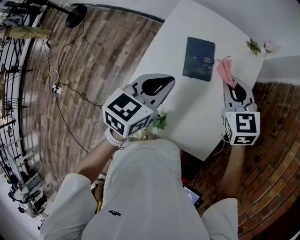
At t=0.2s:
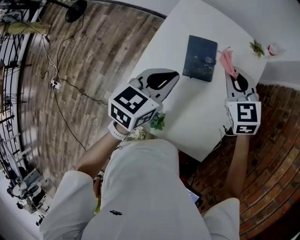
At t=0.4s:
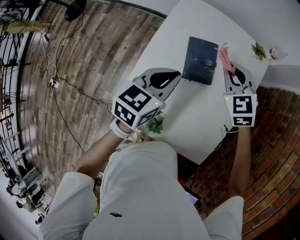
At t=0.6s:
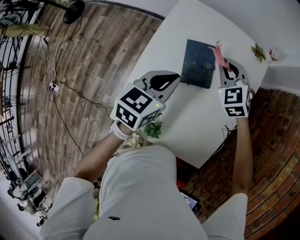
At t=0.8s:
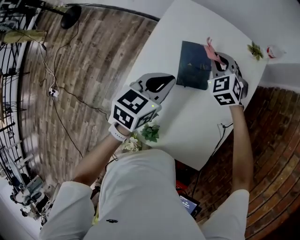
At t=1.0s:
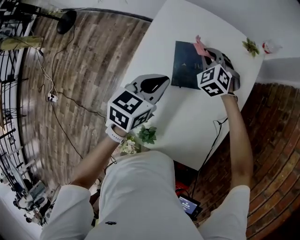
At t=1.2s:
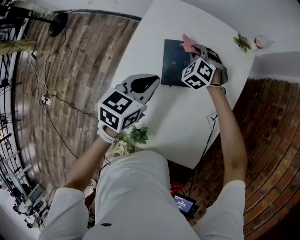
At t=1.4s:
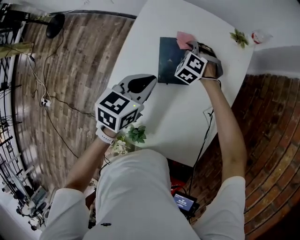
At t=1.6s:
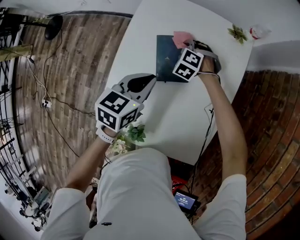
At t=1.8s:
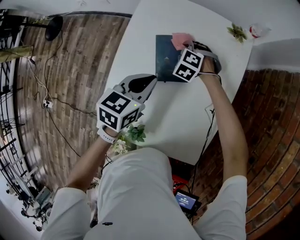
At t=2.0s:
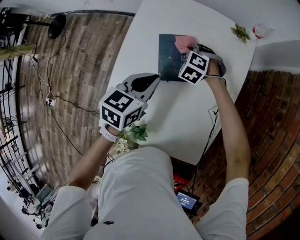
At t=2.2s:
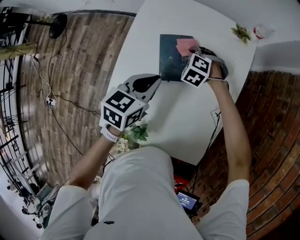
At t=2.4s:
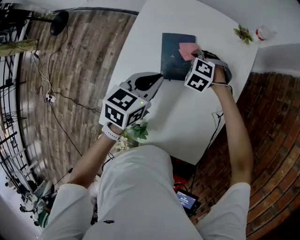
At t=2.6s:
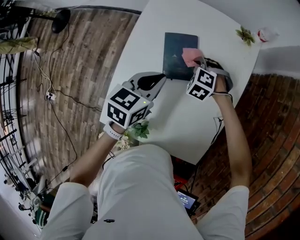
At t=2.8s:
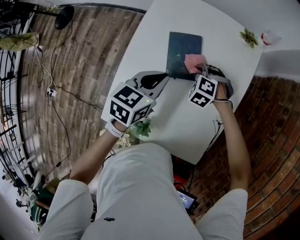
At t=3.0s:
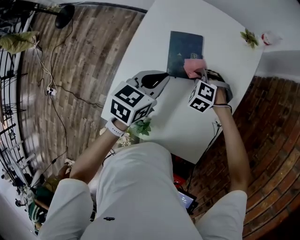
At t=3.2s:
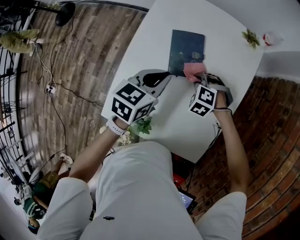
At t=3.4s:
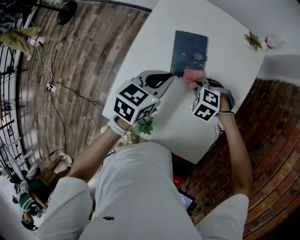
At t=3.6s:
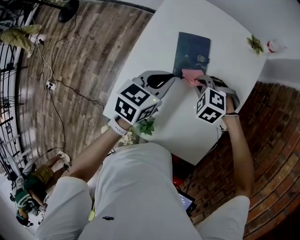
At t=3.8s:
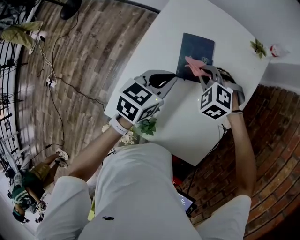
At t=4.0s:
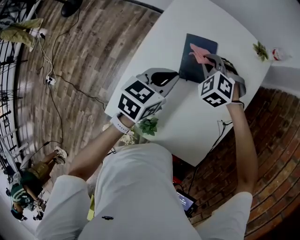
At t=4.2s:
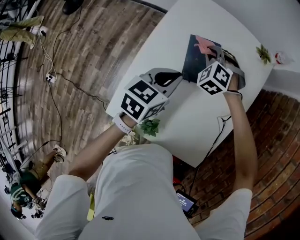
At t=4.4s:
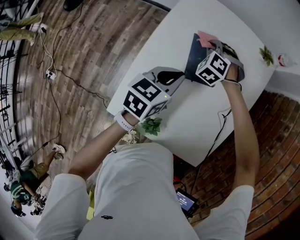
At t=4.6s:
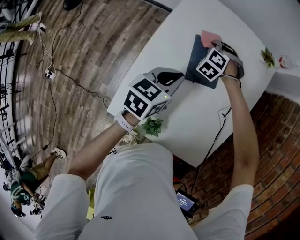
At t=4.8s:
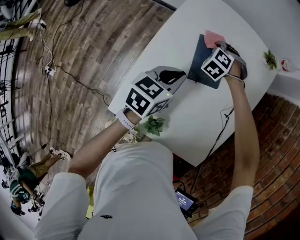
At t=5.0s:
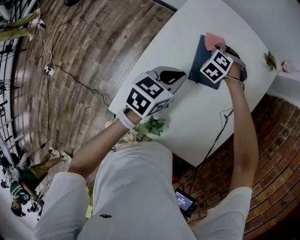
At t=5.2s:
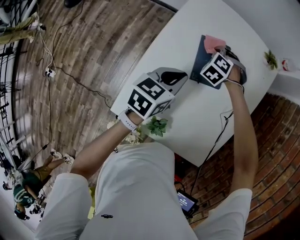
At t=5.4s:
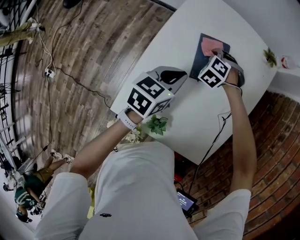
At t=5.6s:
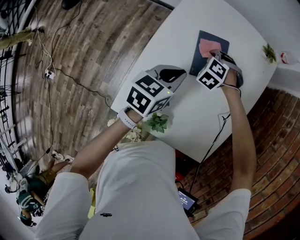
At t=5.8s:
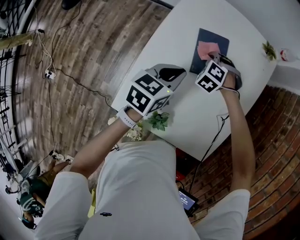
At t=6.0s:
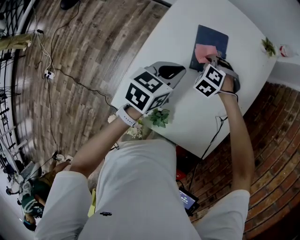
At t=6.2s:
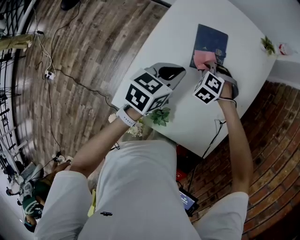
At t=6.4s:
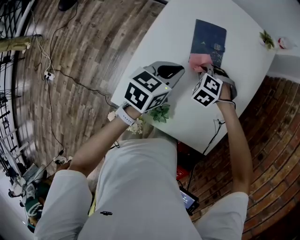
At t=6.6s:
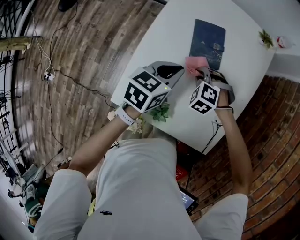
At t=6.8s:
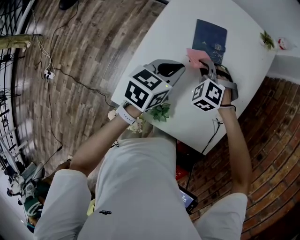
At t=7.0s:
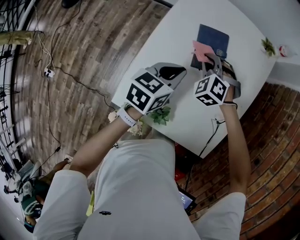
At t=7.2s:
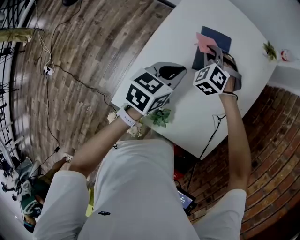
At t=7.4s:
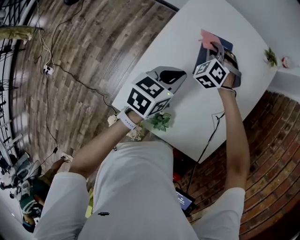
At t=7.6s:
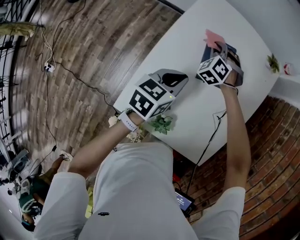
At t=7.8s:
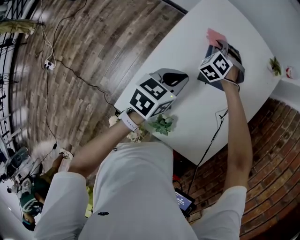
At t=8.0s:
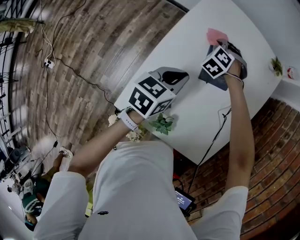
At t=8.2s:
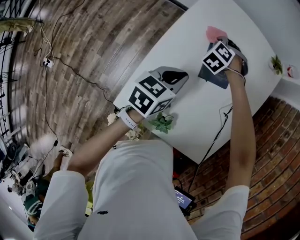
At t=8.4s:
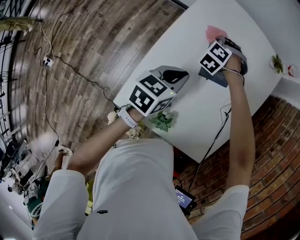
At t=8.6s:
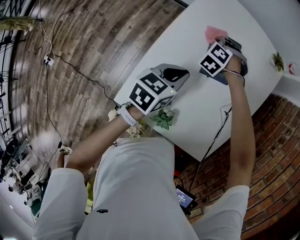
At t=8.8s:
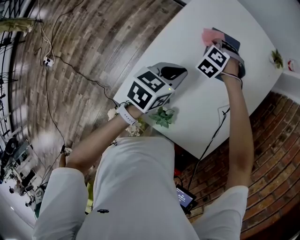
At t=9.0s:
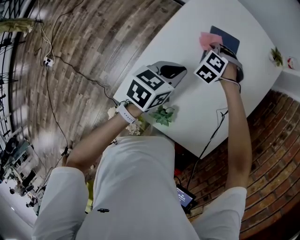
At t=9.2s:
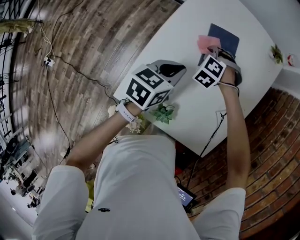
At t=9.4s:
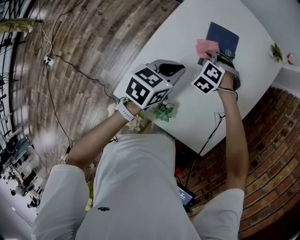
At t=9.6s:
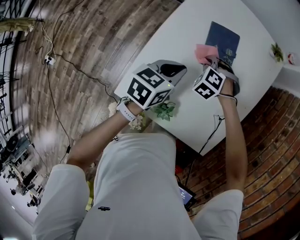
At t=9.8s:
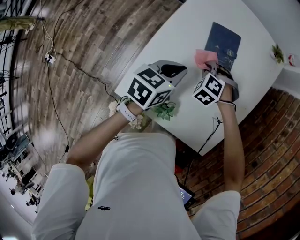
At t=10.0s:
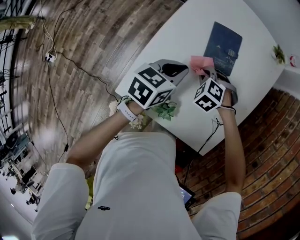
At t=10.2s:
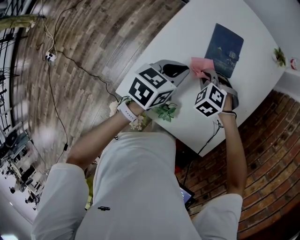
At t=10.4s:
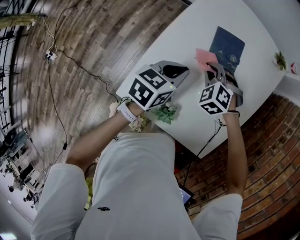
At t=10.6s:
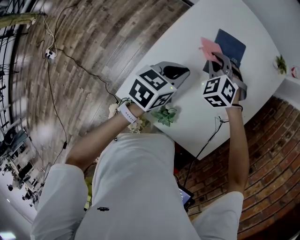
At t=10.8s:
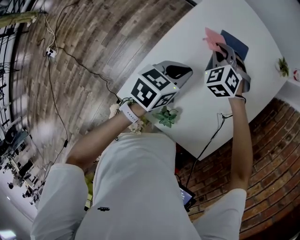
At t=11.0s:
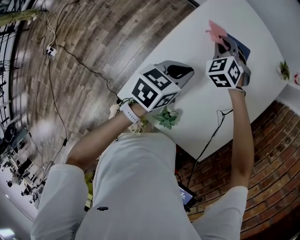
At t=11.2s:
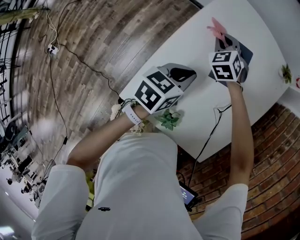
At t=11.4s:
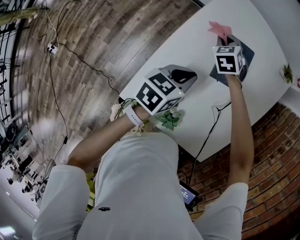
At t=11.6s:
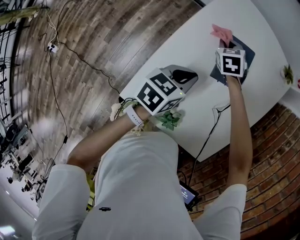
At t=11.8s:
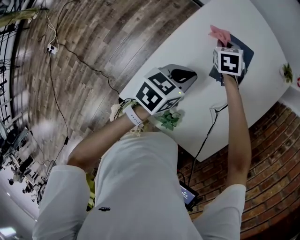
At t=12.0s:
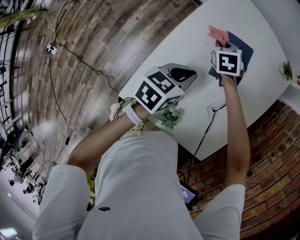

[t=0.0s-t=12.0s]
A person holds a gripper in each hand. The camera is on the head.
t=0.0s to t=1.6s: The right gripper heads downward and forward, covering some 30 cm, and changes its angle by some 50 degrees; the left gripper heads downward and forward, covering approximately 15 cm.
t=1.6s to t=3.0s: The right gripper goes approximately 15 cm backward.
t=3.0s to t=4.4s: The right gripper changes place by some 15 cm.
t=4.4s to t=6.0s: The right gripper travels backward by about 10 cm.
t=6.0s to t=7.6s: The right gripper shifts about 10 cm forward and to the left.
t=7.6s to t=9.0s: The right gripper is displaced backward by about 5 cm.
t=9.0s to t=10.4s: The right gripper heads backward, covering roughly 10 cm.
t=10.4s to t=12.0s: The right gripper travels forward by about 15 cm, and twists approximately 40 degrees clockwise, seen from behind.

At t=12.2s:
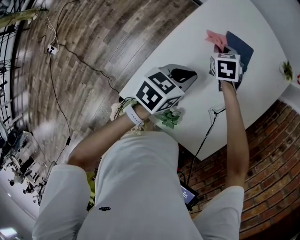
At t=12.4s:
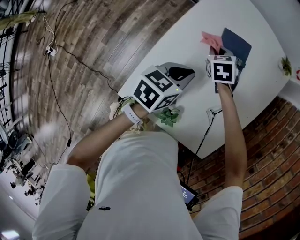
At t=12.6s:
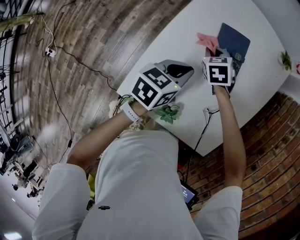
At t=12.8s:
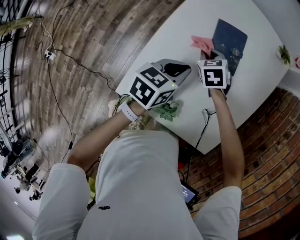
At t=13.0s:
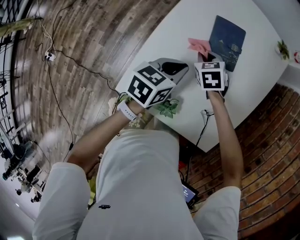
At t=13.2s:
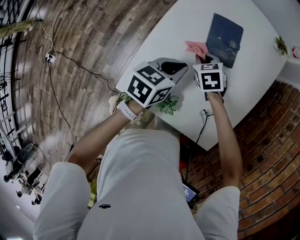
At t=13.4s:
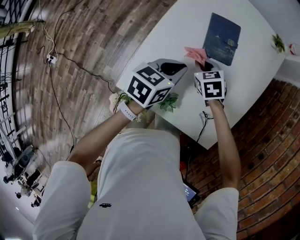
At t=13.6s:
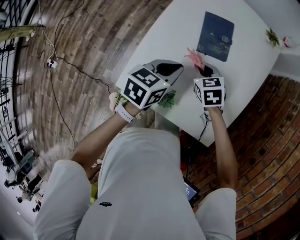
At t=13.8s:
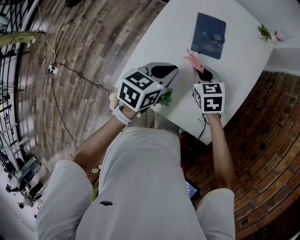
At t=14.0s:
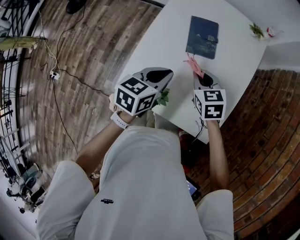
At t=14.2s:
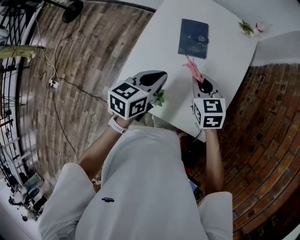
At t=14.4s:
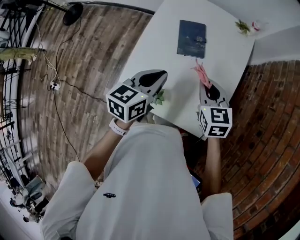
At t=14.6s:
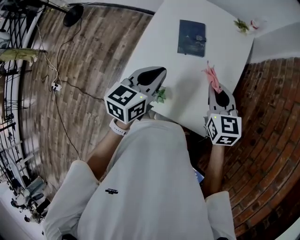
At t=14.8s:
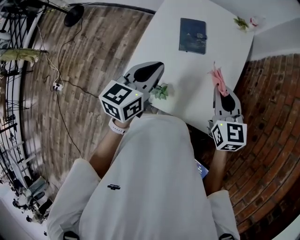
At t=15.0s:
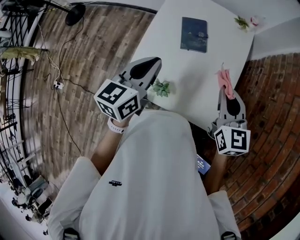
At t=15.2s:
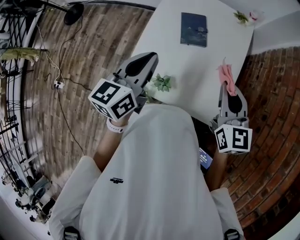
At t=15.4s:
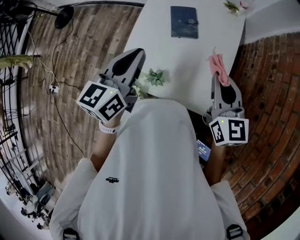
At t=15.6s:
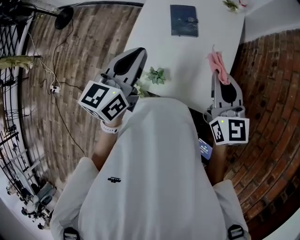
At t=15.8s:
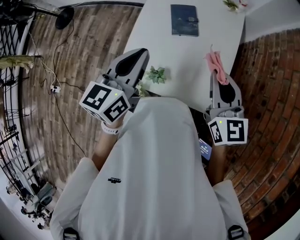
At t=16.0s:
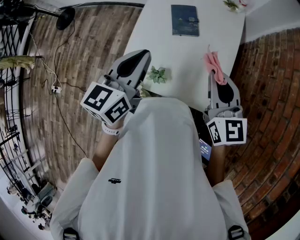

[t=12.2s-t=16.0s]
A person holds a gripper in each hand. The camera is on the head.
t=12.2s to t=13.4s: The right gripper travels backward by about 15 cm, while the left gripper changes place by roughly 5 cm.
t=13.4s to t=14.8s: The left gripper travels upward by roughly 20 cm, and turns by approximately 20 degrees. Meanwhile the right gripper travels upward, to the right and backward by about 35 cm, and points its fingers roughly 30 degrees further upward.
t=14.8s to t=16.0s: The left gripper moves upward and backward, roughly 10 cm, while the right gripper heads backward and upward, covering roughly 10 cm.

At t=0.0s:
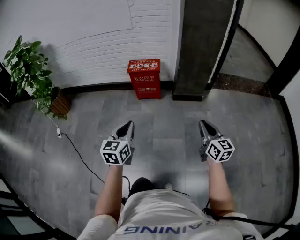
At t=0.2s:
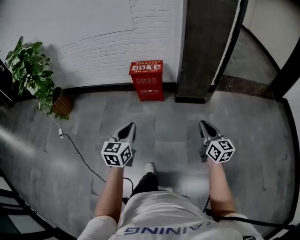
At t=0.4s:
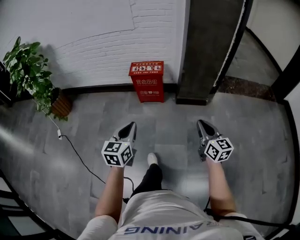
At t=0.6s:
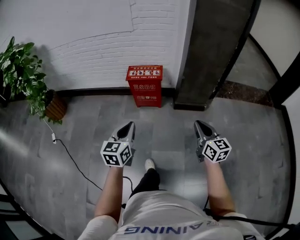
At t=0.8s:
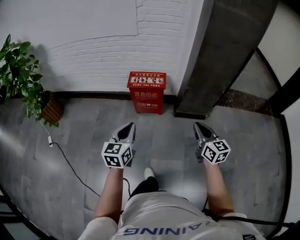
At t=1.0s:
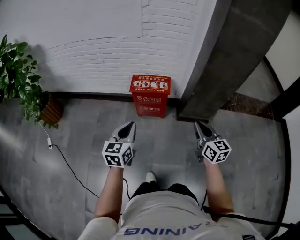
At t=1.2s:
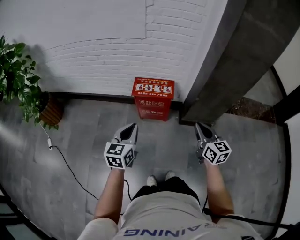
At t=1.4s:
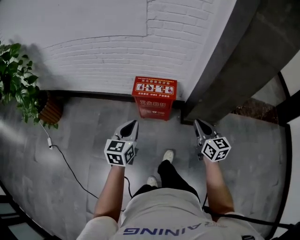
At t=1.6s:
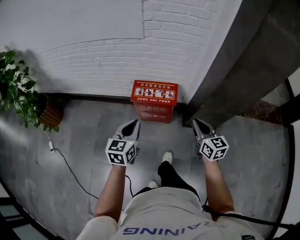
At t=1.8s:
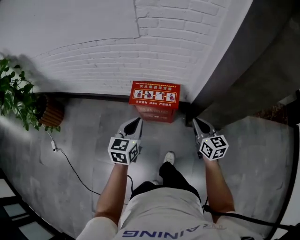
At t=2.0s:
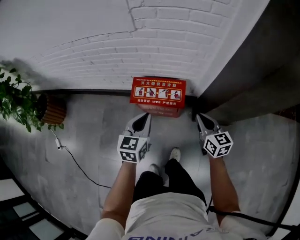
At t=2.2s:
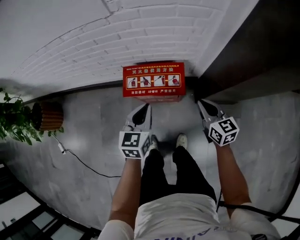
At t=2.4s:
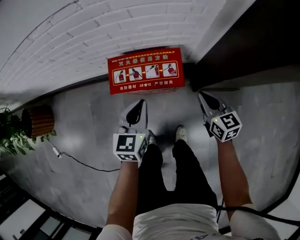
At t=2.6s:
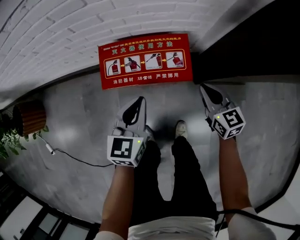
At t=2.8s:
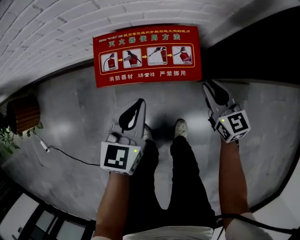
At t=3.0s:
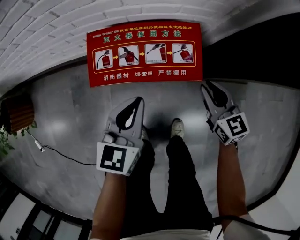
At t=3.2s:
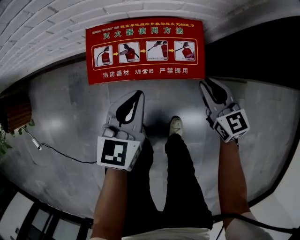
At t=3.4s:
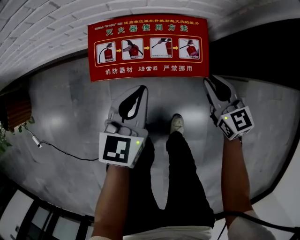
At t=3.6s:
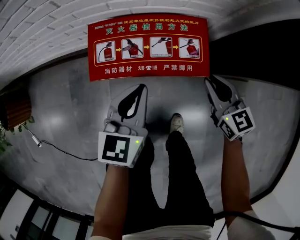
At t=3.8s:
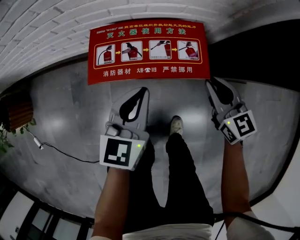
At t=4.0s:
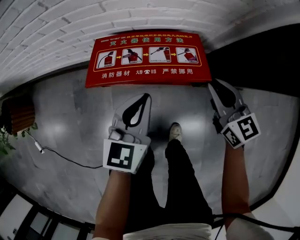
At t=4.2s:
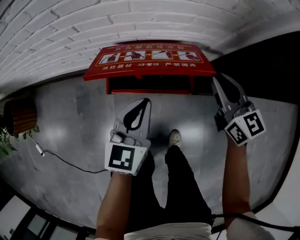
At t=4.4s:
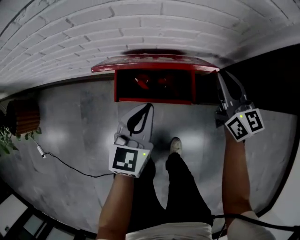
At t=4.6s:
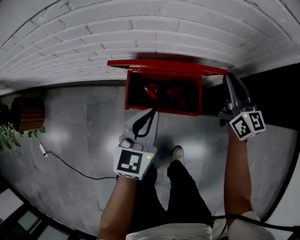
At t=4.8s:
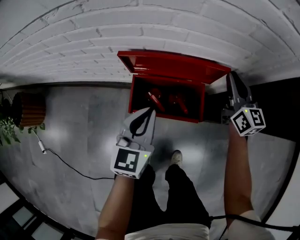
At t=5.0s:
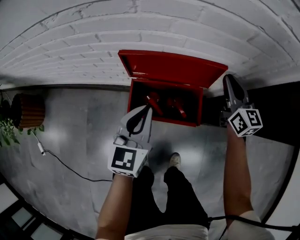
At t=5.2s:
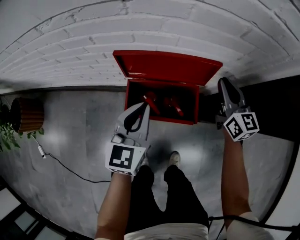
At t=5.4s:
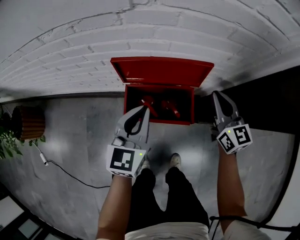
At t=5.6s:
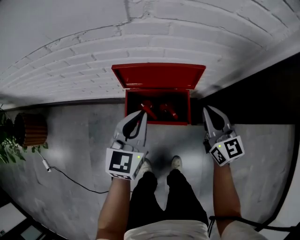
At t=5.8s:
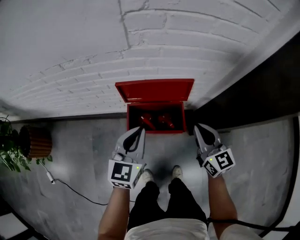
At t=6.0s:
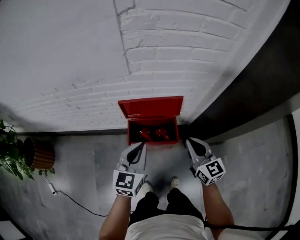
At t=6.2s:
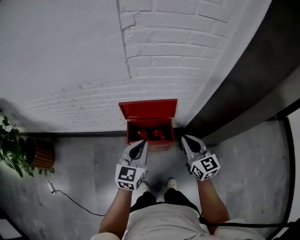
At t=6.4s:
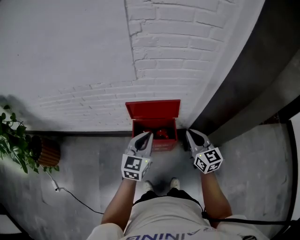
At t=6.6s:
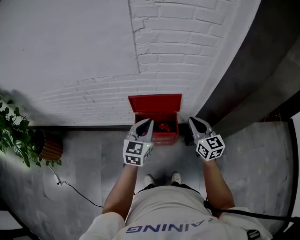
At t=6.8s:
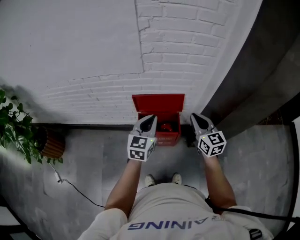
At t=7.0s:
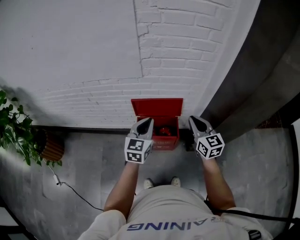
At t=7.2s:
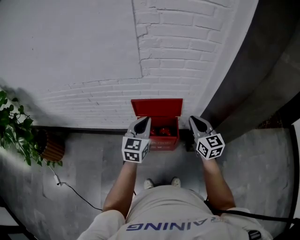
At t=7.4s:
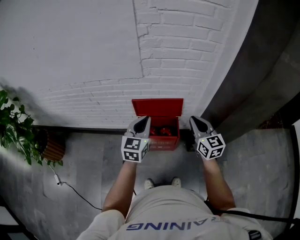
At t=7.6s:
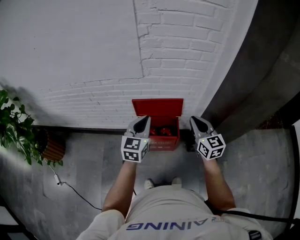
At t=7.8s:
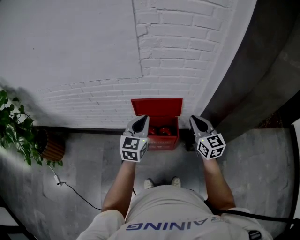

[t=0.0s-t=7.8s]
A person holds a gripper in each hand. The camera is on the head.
t=0.0s to t=1.6s: The pair of grippers is taken forward, approximately 50 cm.
t=1.6s to t=3.2s: The two grippers go approximately 35 cm downward and forward.
t=3.2s to t=4.6s: The left gripper is displaced upward by some 5 cm, while the right gripper shifts some 20 cm forward and upward, and swivels roughly 30 degrees.
t=4.6s to t=6.2s: The left gripper travels upward and backward by roughly 20 cm; the right gripper heads backward and upward, covering about 25 cm.
t=6.2s to t=7.8s: Both grippers travel together upward, approximately 5 cm.
